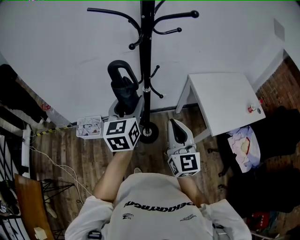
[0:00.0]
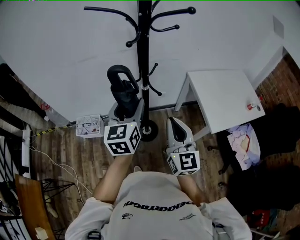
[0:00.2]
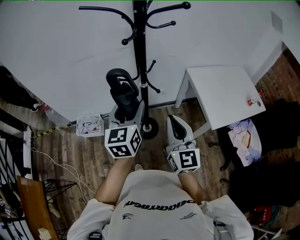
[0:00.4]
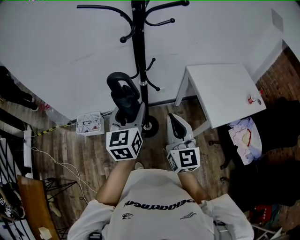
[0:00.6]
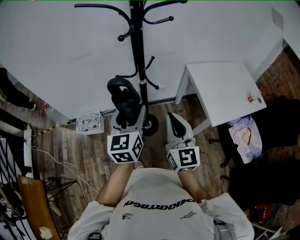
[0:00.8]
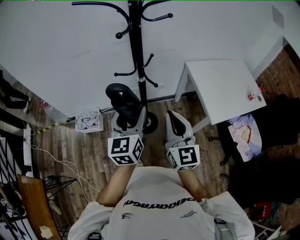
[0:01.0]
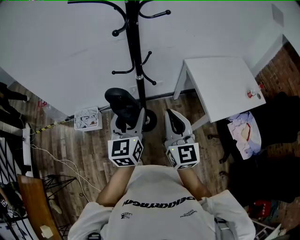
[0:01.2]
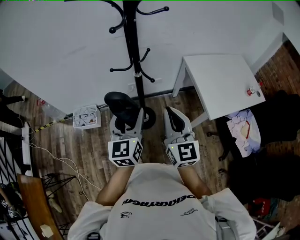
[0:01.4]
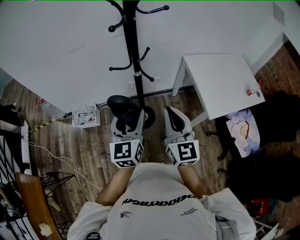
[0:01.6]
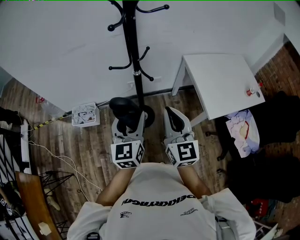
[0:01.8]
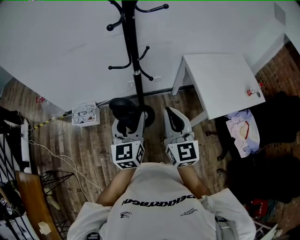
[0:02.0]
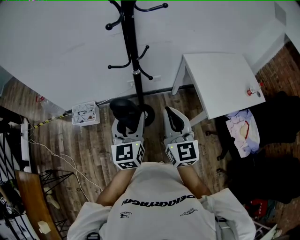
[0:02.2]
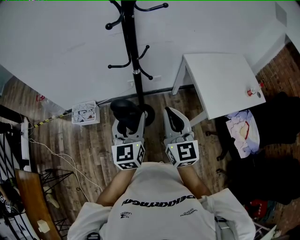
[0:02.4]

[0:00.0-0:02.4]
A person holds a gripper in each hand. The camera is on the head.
0.0 to 1.2 s: The left gripper goes approximately 10 cm backward and downward.
1.2 to 2.4 s: The grippers move only a little.

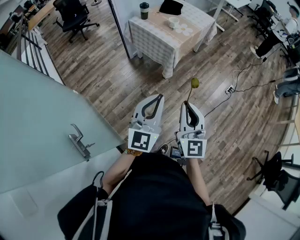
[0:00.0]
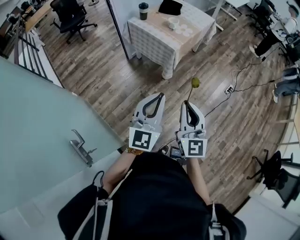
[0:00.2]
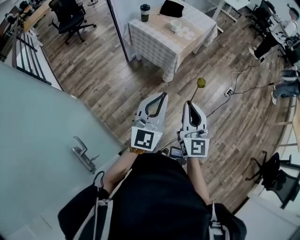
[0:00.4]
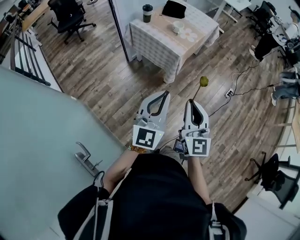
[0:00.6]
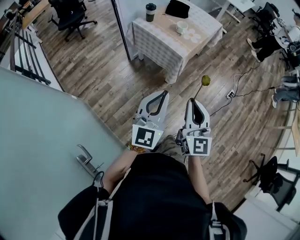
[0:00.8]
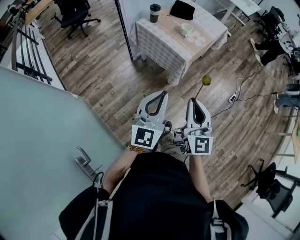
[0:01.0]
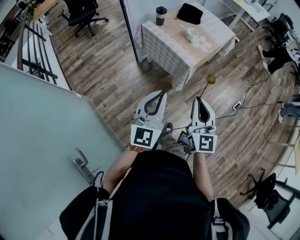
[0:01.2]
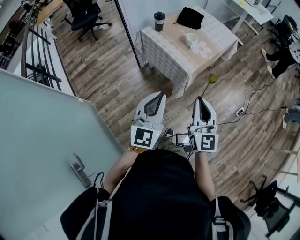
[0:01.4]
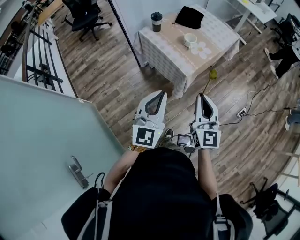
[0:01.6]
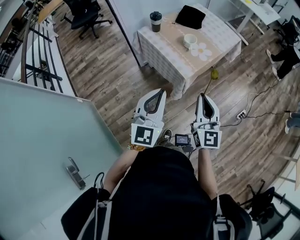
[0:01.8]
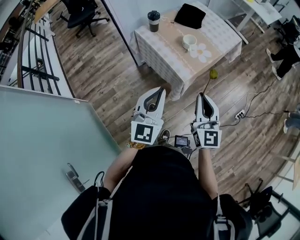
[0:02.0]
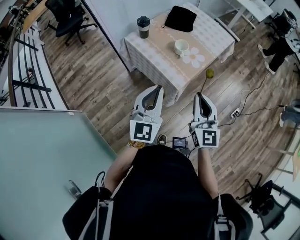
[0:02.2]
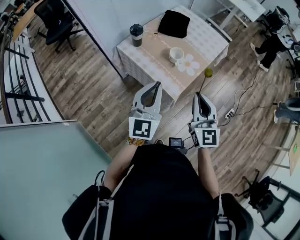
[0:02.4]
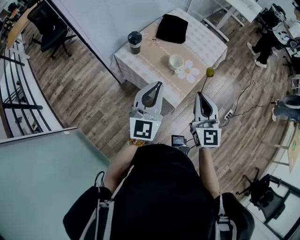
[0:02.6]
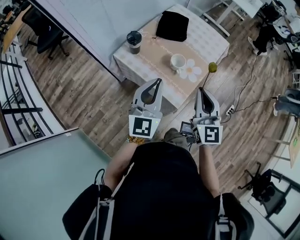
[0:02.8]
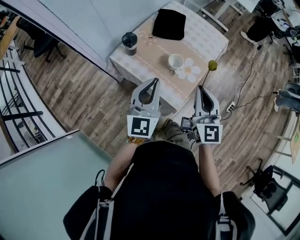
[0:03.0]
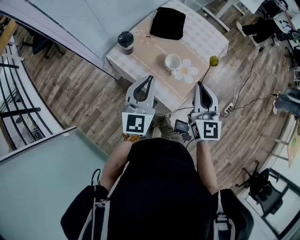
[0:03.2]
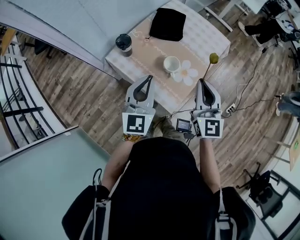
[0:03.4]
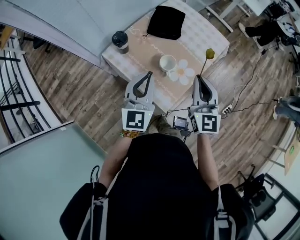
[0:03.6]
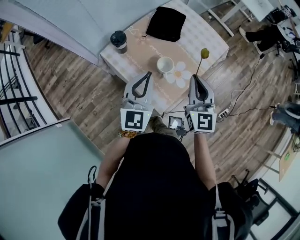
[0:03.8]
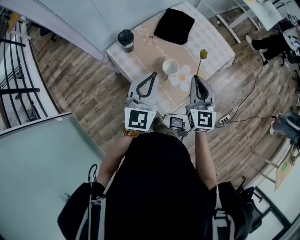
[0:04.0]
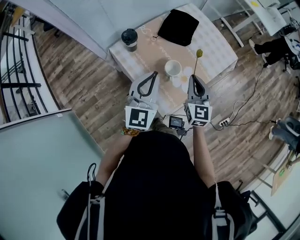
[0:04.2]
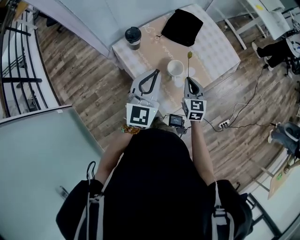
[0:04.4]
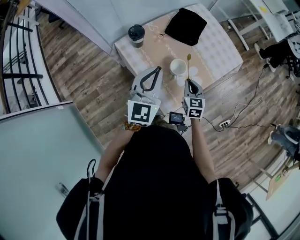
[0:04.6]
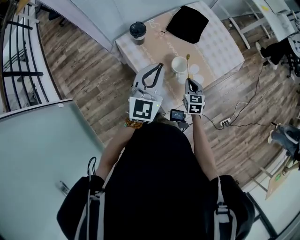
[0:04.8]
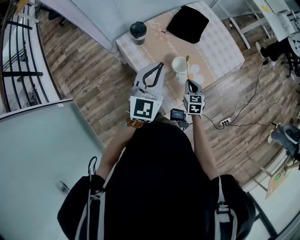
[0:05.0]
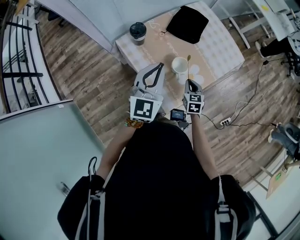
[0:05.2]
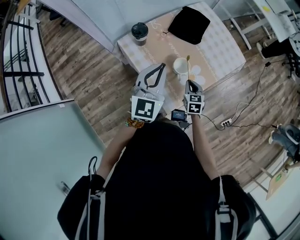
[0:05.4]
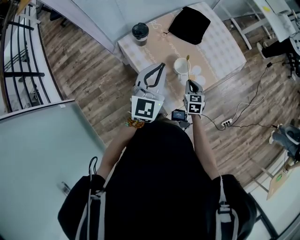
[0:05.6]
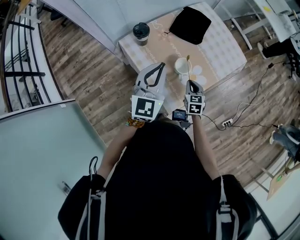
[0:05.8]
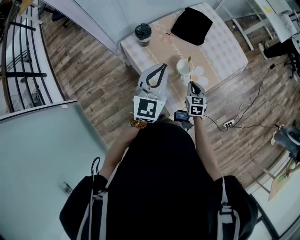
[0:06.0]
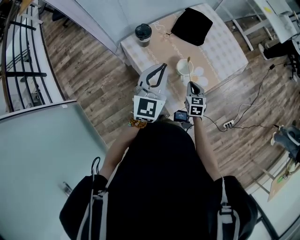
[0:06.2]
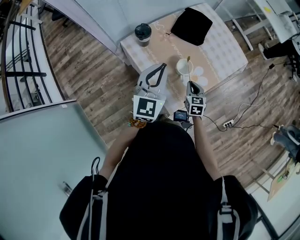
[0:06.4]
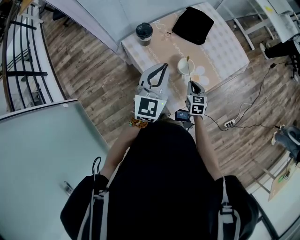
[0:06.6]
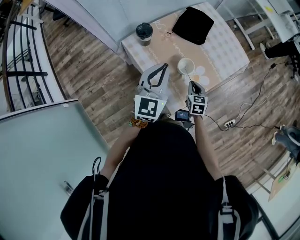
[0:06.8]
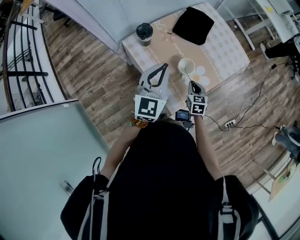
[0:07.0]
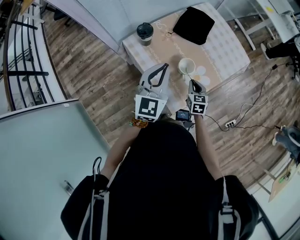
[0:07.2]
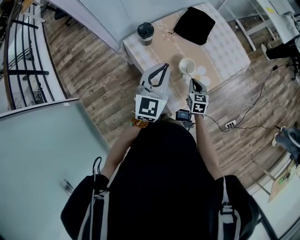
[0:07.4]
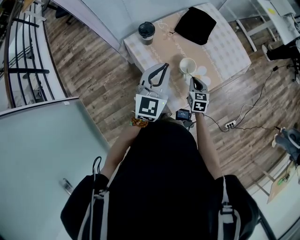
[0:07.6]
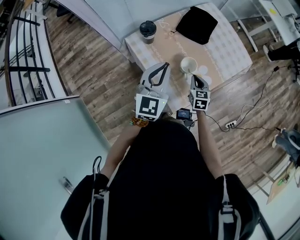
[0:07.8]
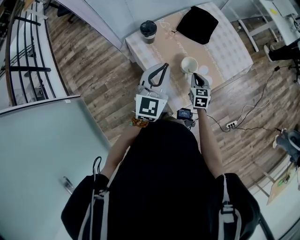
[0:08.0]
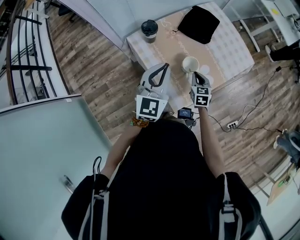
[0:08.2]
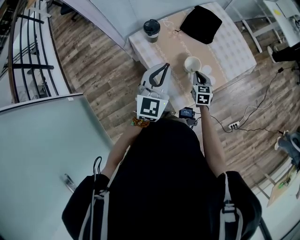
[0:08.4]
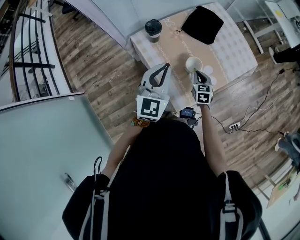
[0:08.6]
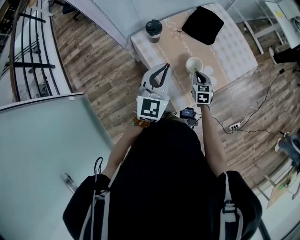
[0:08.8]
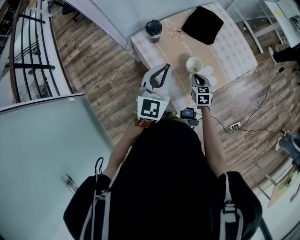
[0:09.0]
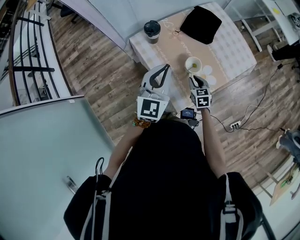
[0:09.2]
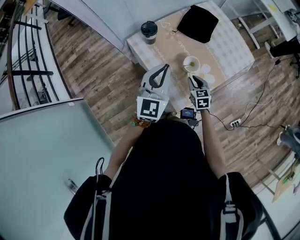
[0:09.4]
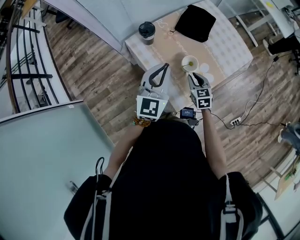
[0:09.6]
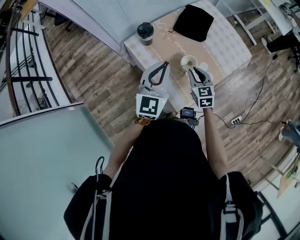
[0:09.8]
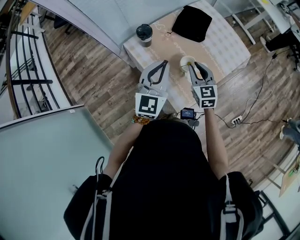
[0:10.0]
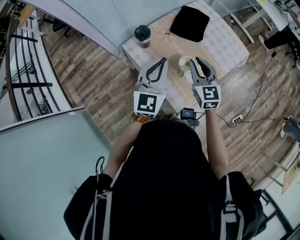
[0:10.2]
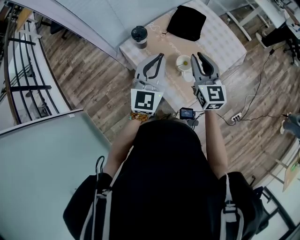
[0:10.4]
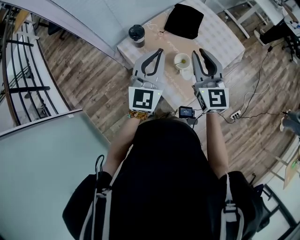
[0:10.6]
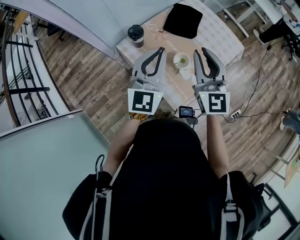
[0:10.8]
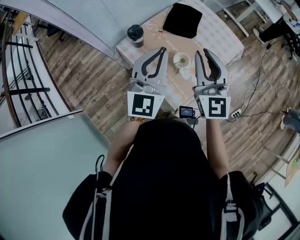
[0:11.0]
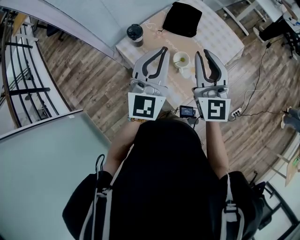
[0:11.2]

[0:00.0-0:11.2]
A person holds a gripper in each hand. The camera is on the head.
0.0 to 1.6 s: The grippers both shift forward by approximately 35 cm.
1.6 to 3.2 s: Both grippers travel together forward, some 40 cm.
3.2 to 4.8 s: The left gripper goes approximately 5 cm forward; the right gripper moves downward and forward, roughly 30 cm, and tilts its fingers roughly 30 degrees downward.
4.8 to 9.6 s: The grippers move only a little.
9.6 to 11.2 s: The left gripper heads upward, covering about 10 cm. The right gripper shifts about 30 cm upward, and points its fingers approximately 40 degrees further upward.

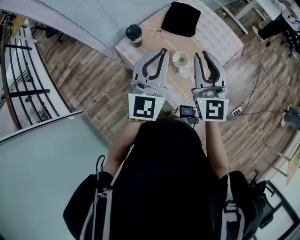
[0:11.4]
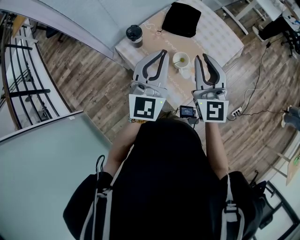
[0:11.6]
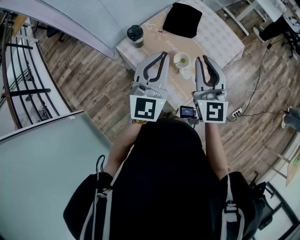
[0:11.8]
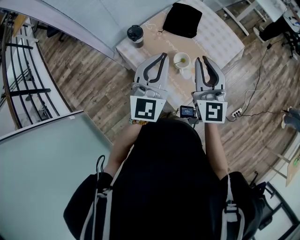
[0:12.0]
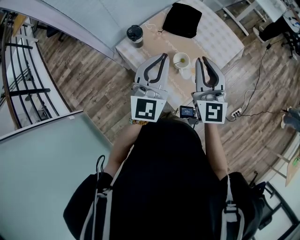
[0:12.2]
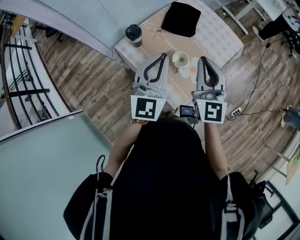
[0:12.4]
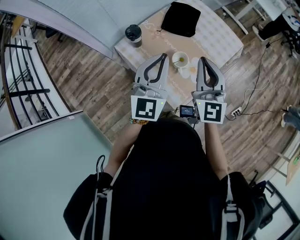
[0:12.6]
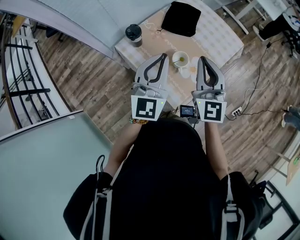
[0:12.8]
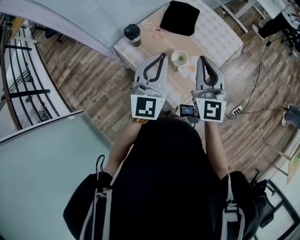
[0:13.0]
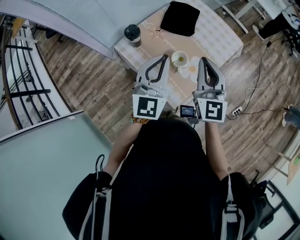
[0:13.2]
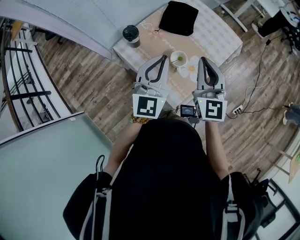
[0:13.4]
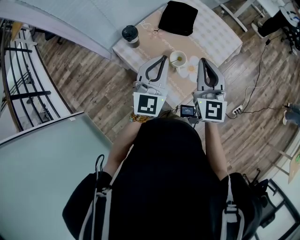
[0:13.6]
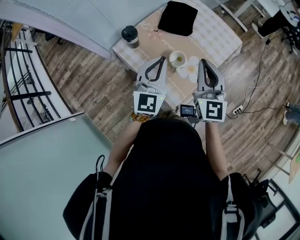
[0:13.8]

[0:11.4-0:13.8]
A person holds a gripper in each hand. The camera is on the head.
11.4 to 12.6 s: There are only small adjustments of the grippers.
12.6 to 13.8 s: The left gripper goes some 5 cm downward.

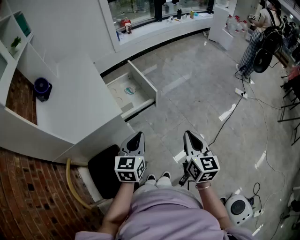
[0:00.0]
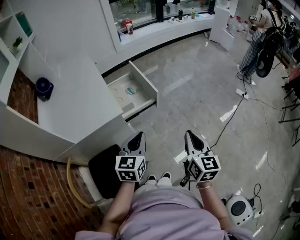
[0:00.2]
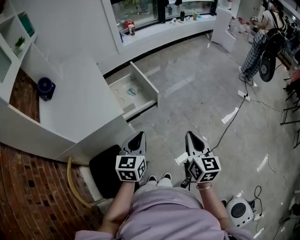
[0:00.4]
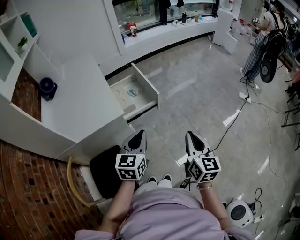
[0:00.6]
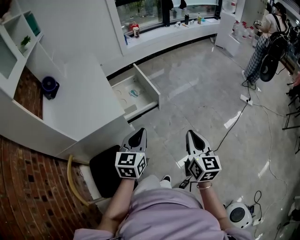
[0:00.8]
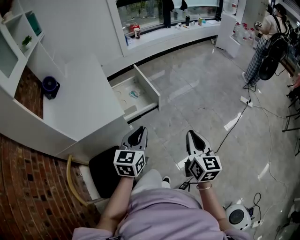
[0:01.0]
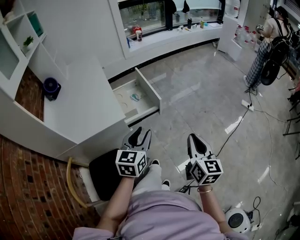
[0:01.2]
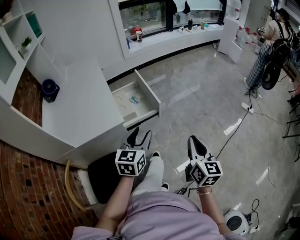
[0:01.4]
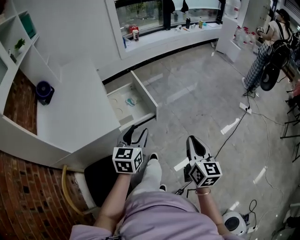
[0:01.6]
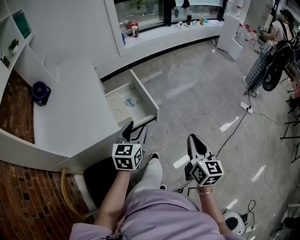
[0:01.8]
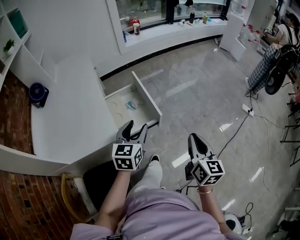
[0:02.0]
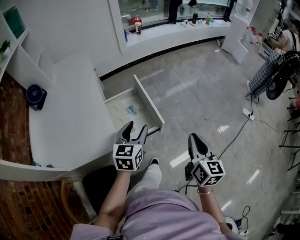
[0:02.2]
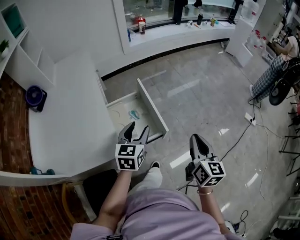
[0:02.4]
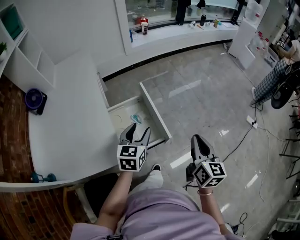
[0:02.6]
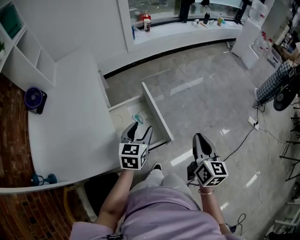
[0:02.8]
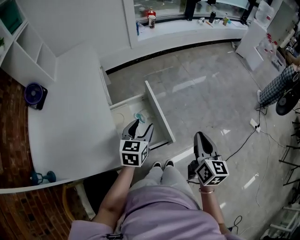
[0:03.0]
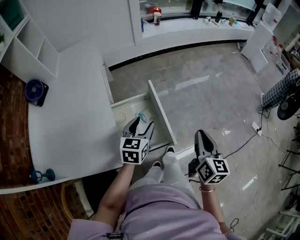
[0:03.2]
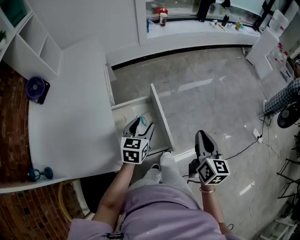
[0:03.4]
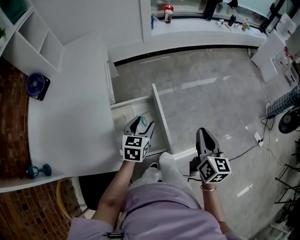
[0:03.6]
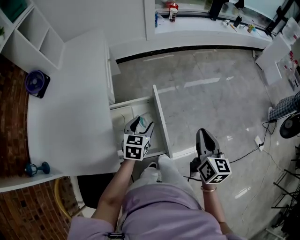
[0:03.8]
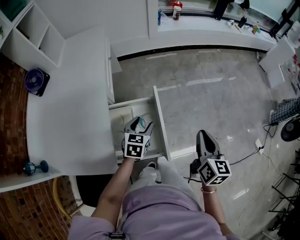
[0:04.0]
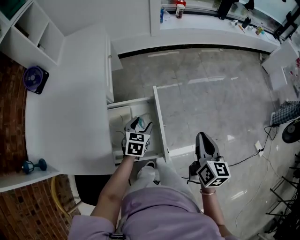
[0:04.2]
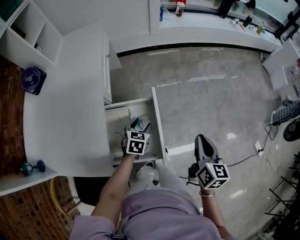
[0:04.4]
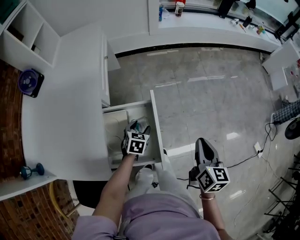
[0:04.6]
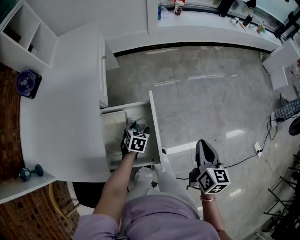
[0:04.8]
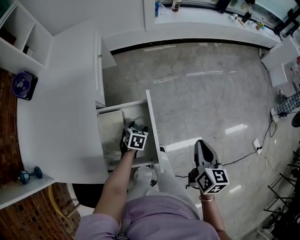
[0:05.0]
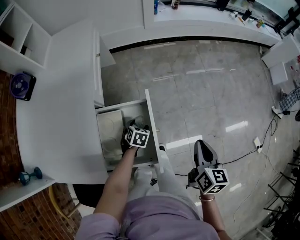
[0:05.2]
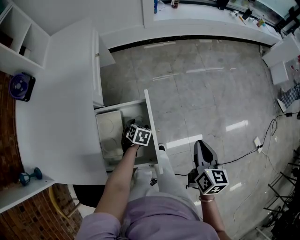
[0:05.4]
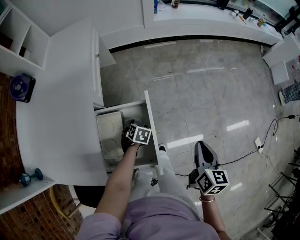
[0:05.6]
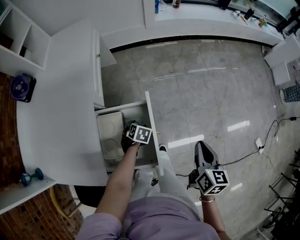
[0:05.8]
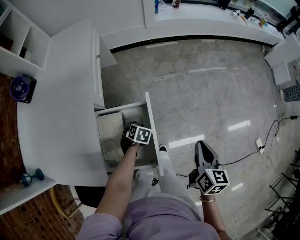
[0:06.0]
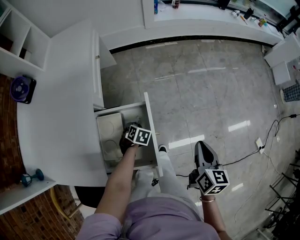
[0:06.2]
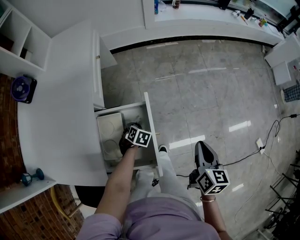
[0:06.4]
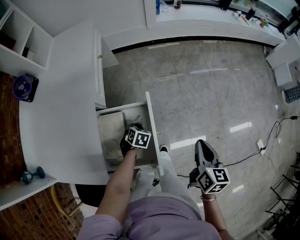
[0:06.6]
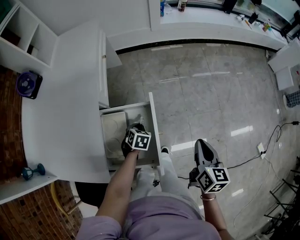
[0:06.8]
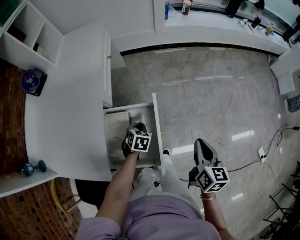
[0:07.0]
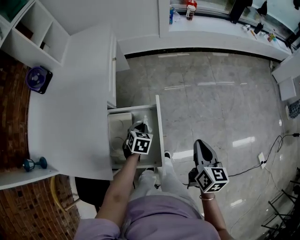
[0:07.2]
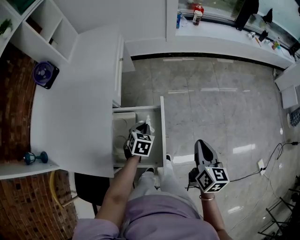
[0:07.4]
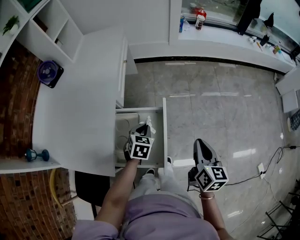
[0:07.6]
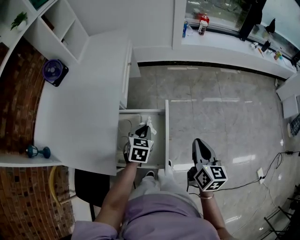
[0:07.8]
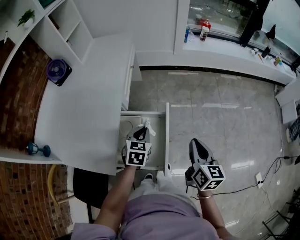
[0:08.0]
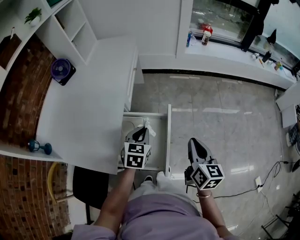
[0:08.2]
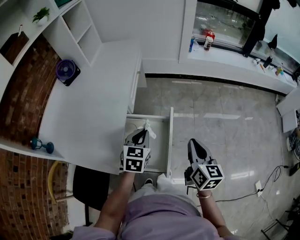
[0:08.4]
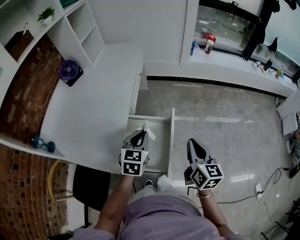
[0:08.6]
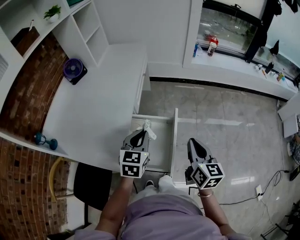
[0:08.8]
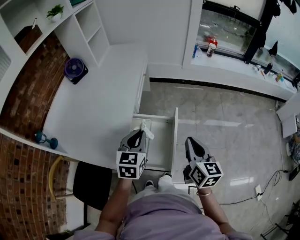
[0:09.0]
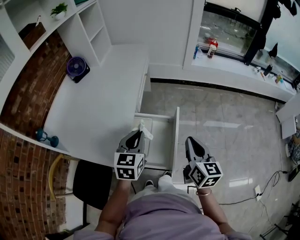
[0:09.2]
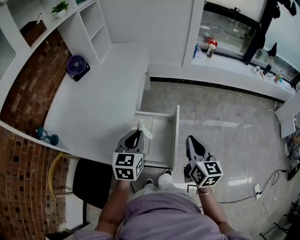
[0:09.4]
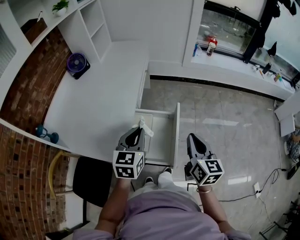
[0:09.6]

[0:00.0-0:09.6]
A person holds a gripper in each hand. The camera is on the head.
0.0 to 1.6 s: Both grippers move forward, roughly 10 cm. The left gripper opens up.
1.6 to 3.2 s: Both grippers move forward, roughly 30 cm.
3.2 to 4.8 s: The right gripper is displaced forward and downward by some 15 cm; the left gripper shifts roughly 25 cm downward and forward, and rotates about 30 degrees.
4.8 to 6.4 s: The left gripper travels downward by some 5 cm, and closes.
6.4 to 8.0 s: The left gripper heads upward, covering about 20 cm, and angles its fingers upward, by roughly 30 degrees, while the right gripper shifts about 10 cm to the left and upward.
8.0 to 9.6 s: The left gripper is displaced upward, backward and to the left by some 20 cm, and changes its angle by about 20 degrees. Meanwhile the right gripper travels to the left and upward by about 10 cm.
